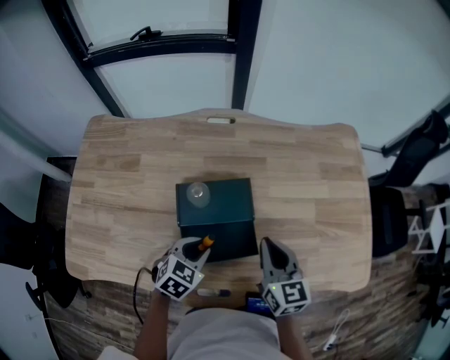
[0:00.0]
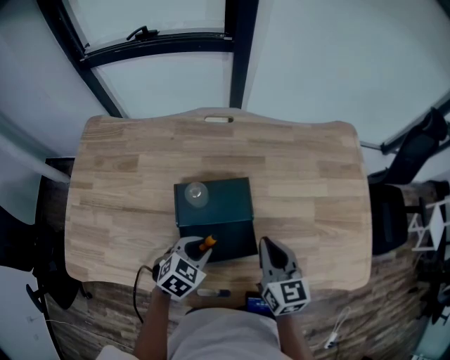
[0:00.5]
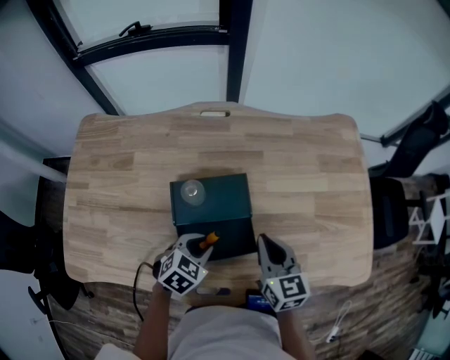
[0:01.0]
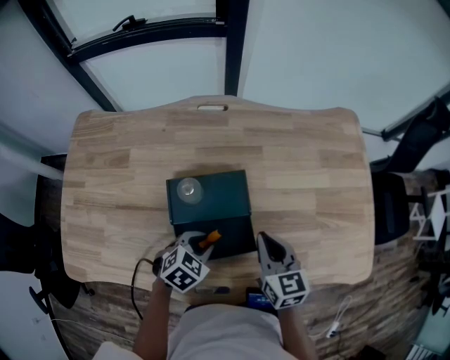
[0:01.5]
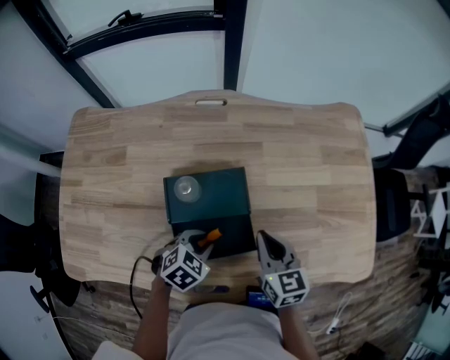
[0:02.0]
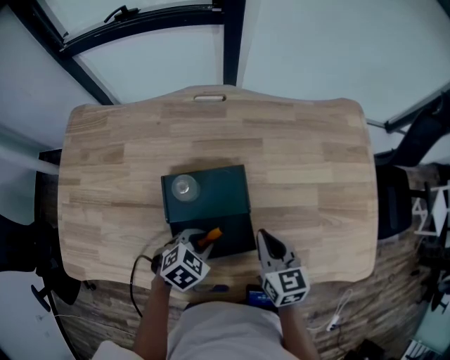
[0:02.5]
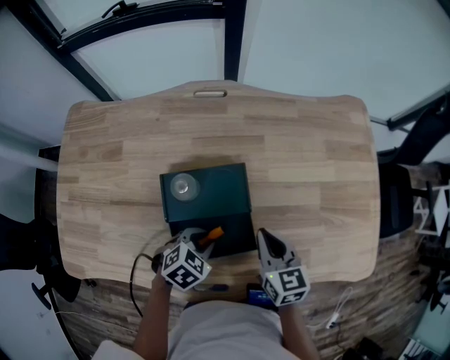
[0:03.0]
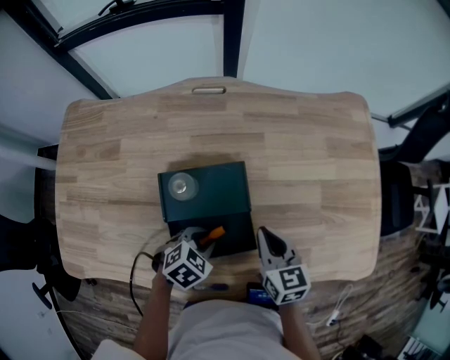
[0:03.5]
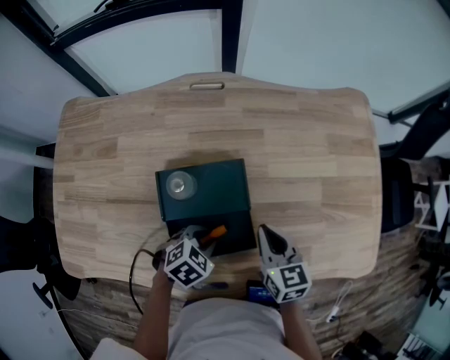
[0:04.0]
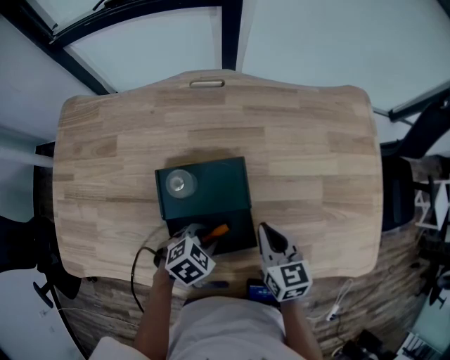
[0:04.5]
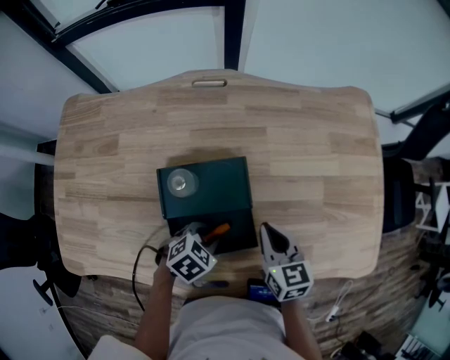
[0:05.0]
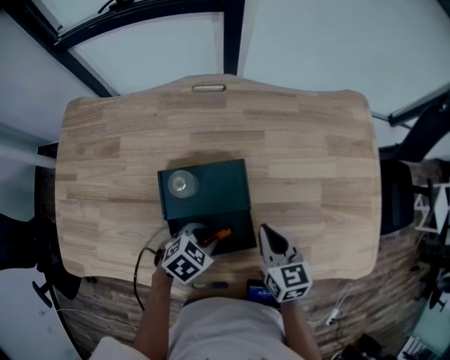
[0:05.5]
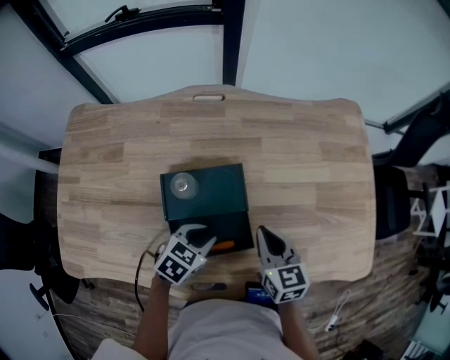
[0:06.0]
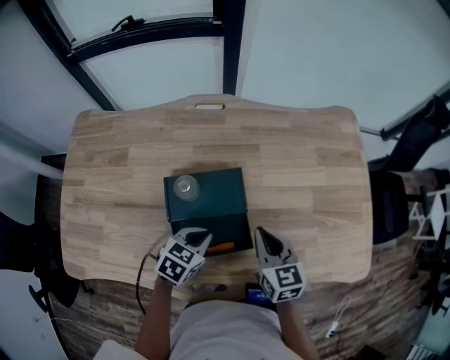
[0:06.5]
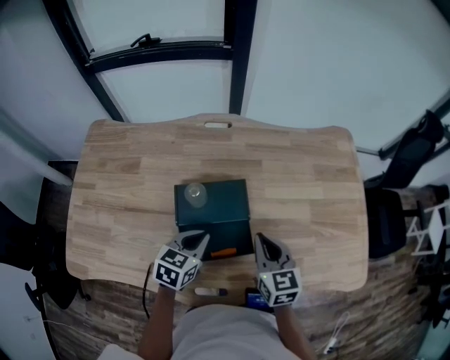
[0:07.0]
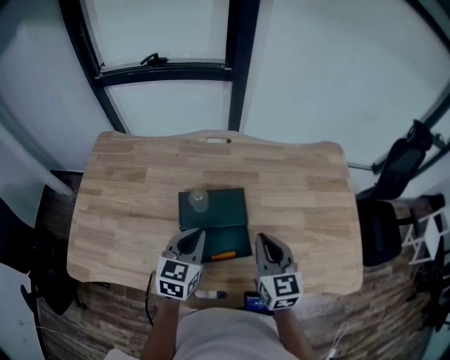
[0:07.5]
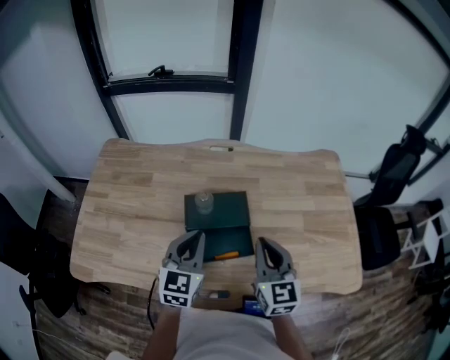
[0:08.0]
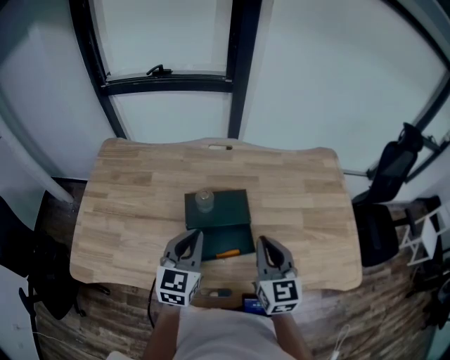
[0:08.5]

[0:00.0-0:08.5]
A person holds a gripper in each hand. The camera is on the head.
0:00.0 to 0:02.0: The right gripper travels downward by roughly 5 cm.
0:02.0 to 0:04.0: There are only small adjustments of the grippers.
0:04.0 to 0:06.5: The left gripper ends up approximately 5 cm from where it was, rotates some 20 degrees, and closes up.
0:06.5 to 0:08.5: Both grippers travel together upward, about 15 cm. The left gripper tips its fingers upward by approximately 30 degrees. Meanwhile the right gripper swivels some 20 degrees.

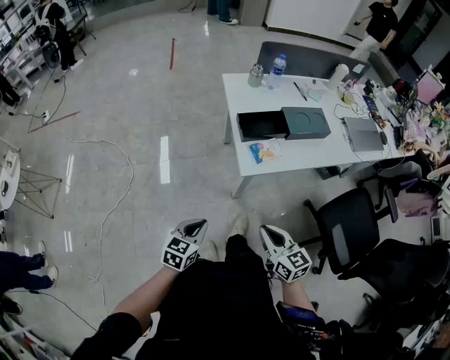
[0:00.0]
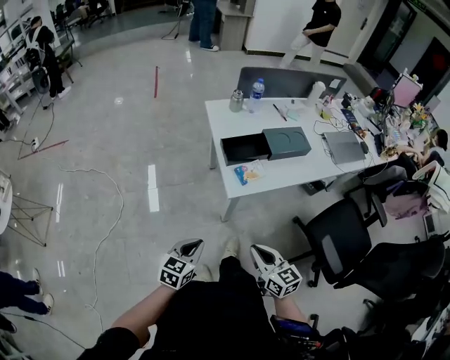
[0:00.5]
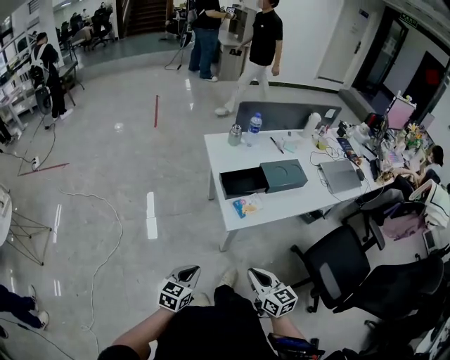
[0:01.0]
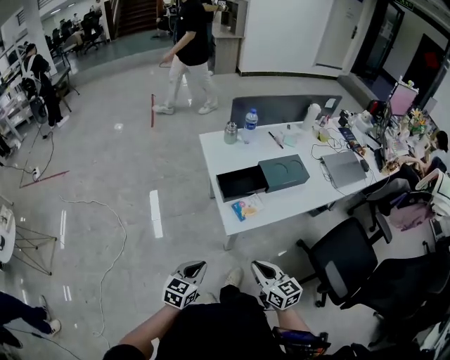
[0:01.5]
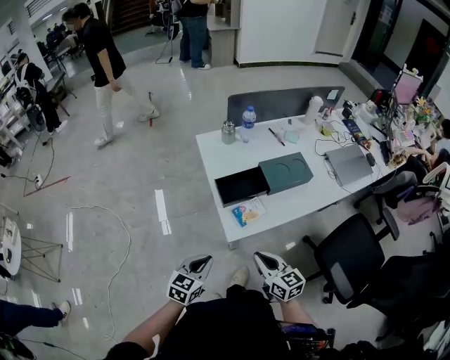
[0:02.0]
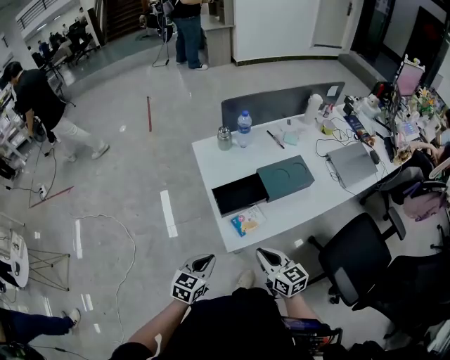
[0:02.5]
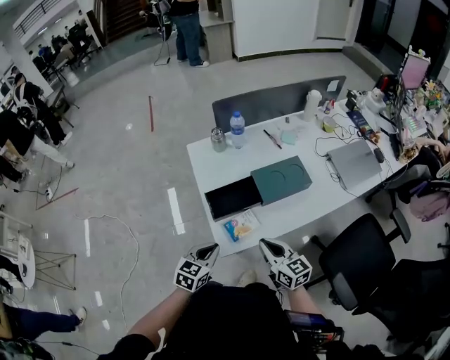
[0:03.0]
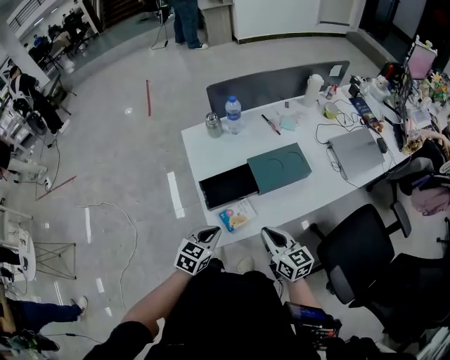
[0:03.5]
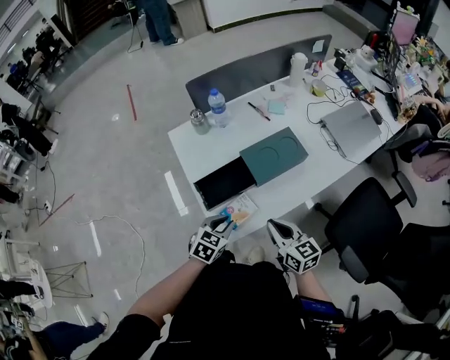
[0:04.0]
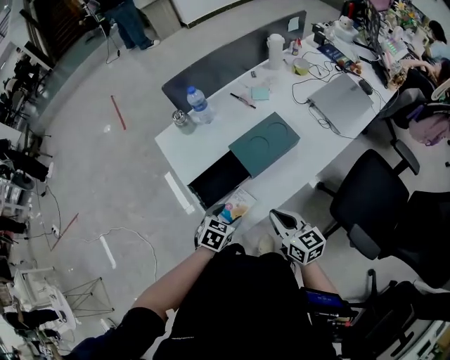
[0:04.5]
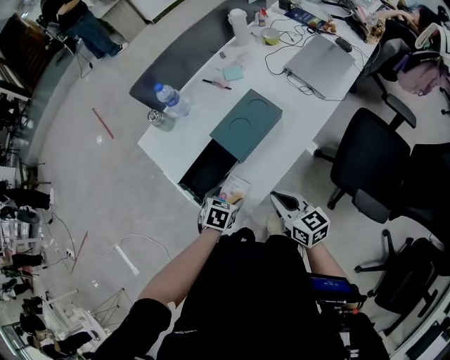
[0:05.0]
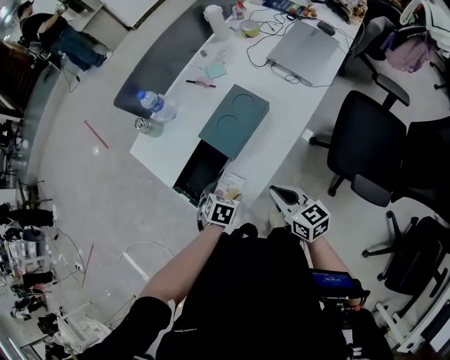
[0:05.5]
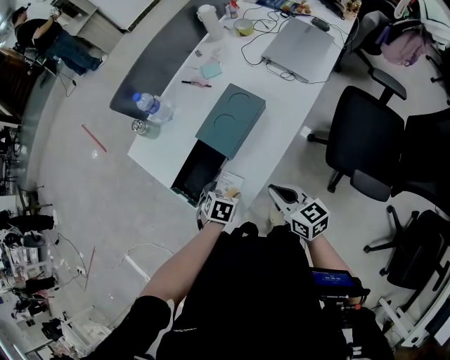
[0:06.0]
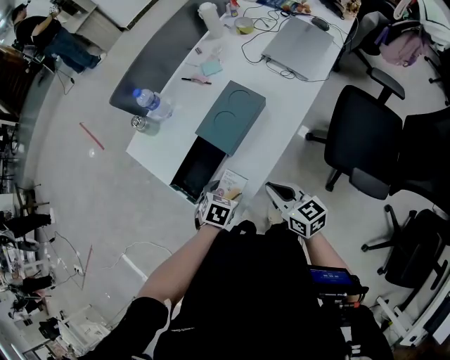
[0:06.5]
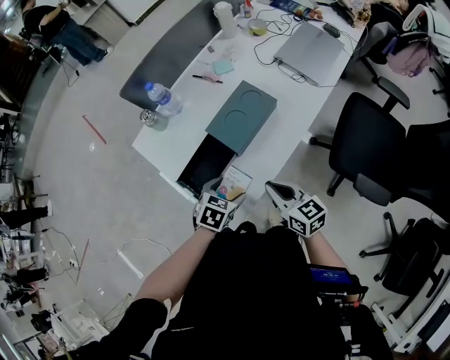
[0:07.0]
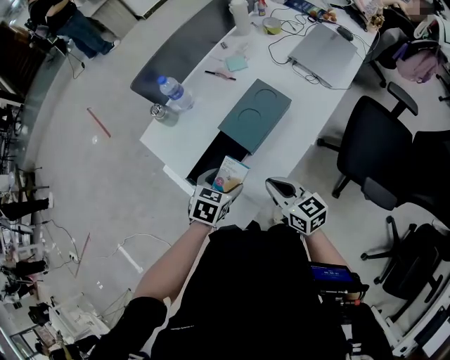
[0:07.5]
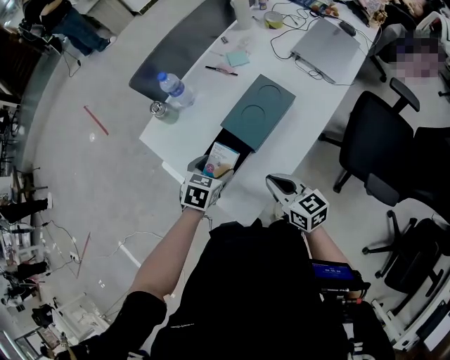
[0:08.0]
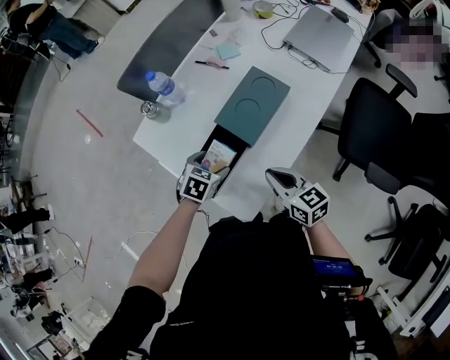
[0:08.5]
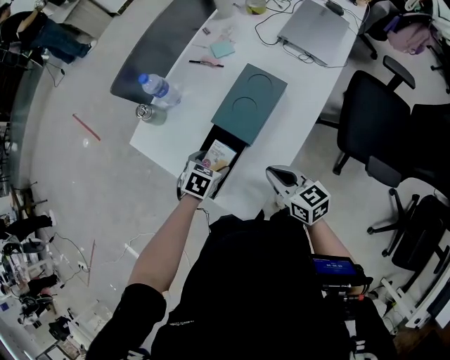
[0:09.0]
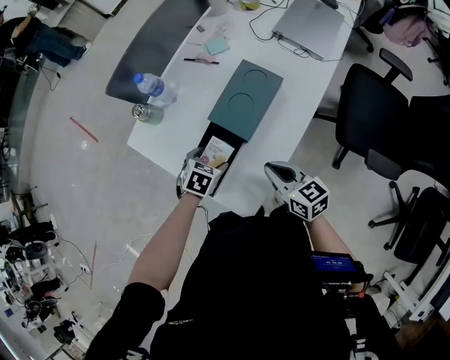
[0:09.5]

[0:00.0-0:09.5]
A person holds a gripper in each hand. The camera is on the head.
0:00.0 to 0:02.0: The two grippers go about 10 cm forward.
0:02.0 to 0:04.0: The grippers both shift forward and to the right by some 20 cm. The left gripper rotates about 20 degrees.
0:04.0 to 0:05.5: The left gripper heads downward, covering about 5 cm, turns by roughly 30 degrees, and opens its fingers.
0:05.5 to 0:07.5: The left gripper travels upward by roughly 10 cm; the right gripper goes roughly 5 cm to the left.
0:07.5 to 0:09.5: The left gripper travels downward and forward by roughly 10 cm.

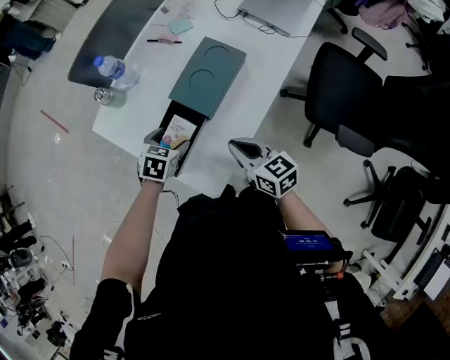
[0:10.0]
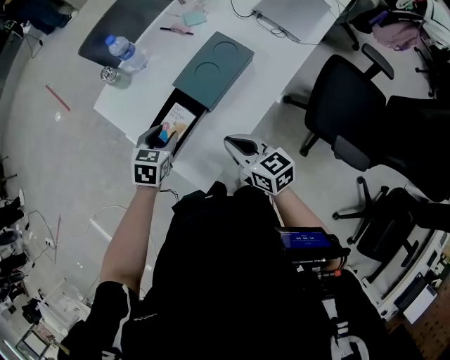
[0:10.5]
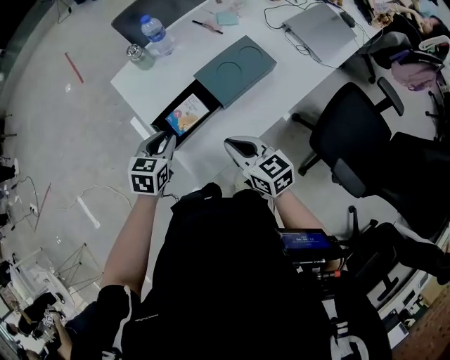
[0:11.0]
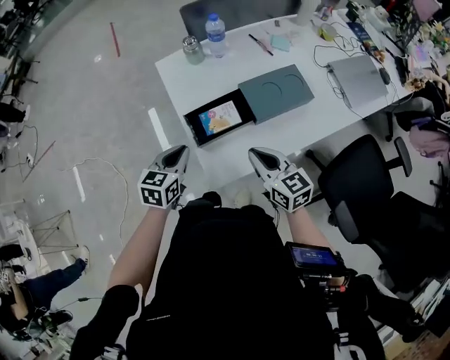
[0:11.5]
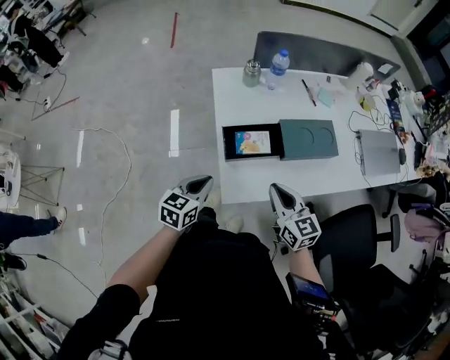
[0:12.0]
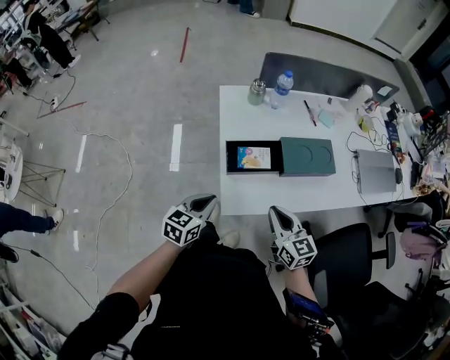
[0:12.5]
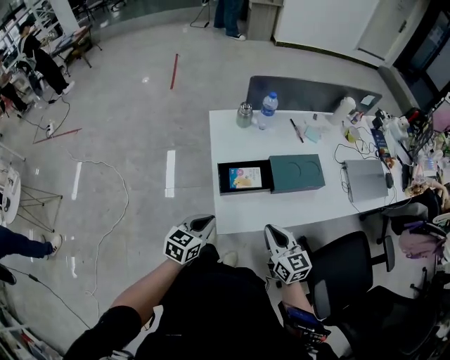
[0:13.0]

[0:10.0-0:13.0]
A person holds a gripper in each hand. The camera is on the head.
0:10.0 to 0:11.5: The left gripper changes place by roughly 15 cm, turns by some 50 degrees, and closes; the right gripper rotates about 30 degrees.
0:11.5 to 0:13.0: The left gripper travels backward by roughly 10 cm. Meanwhile the right gripper moves backward, some 5 cm.

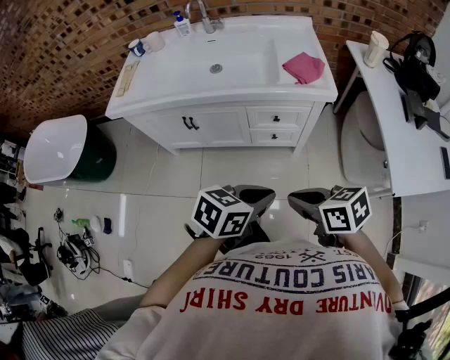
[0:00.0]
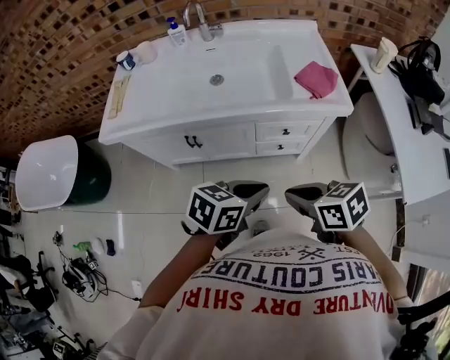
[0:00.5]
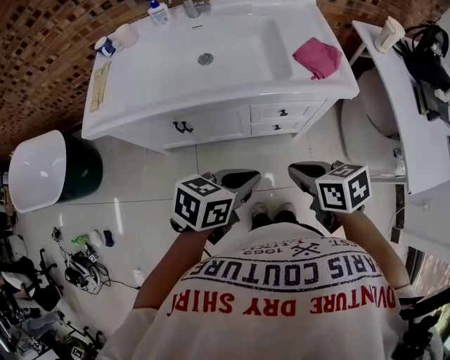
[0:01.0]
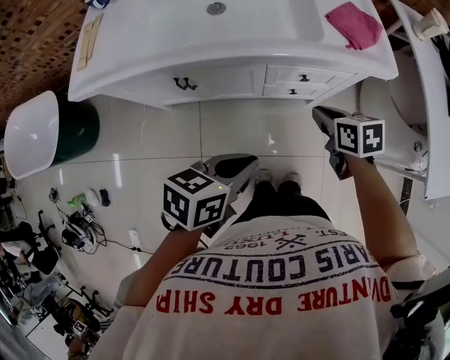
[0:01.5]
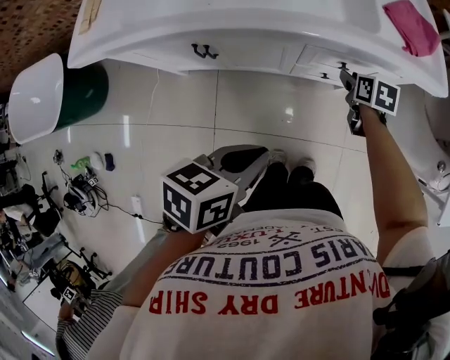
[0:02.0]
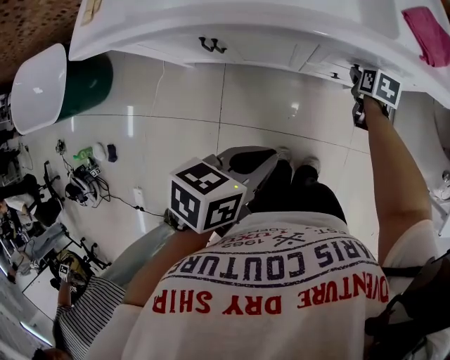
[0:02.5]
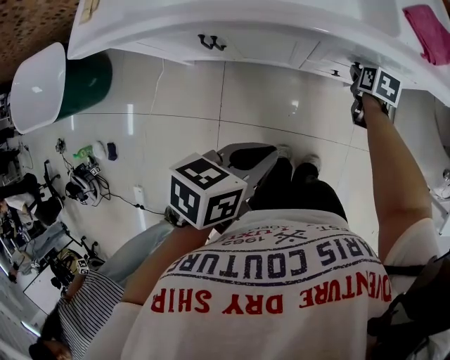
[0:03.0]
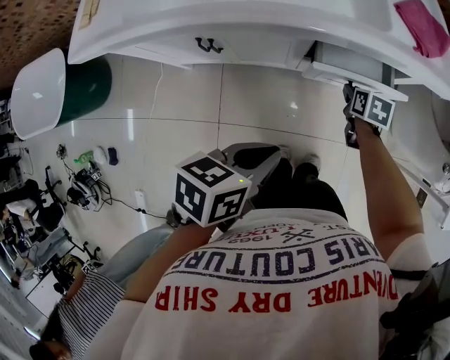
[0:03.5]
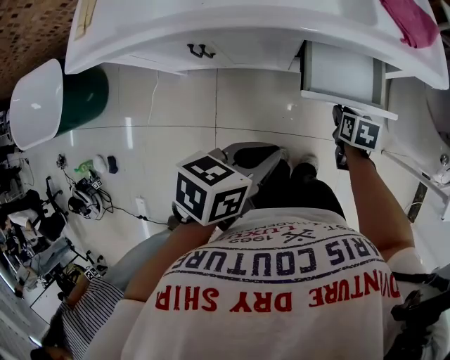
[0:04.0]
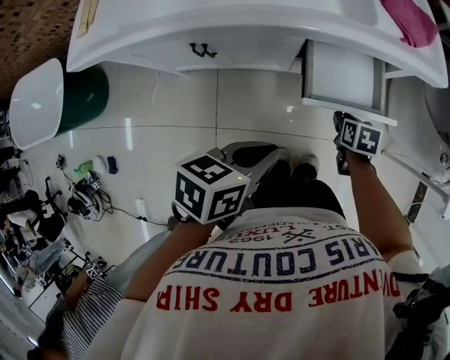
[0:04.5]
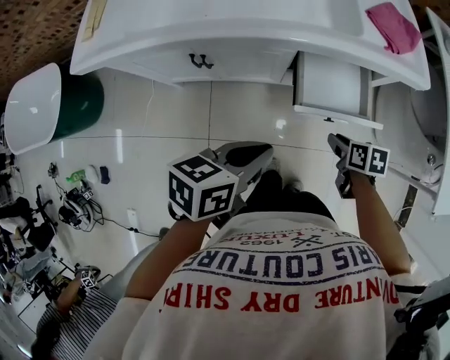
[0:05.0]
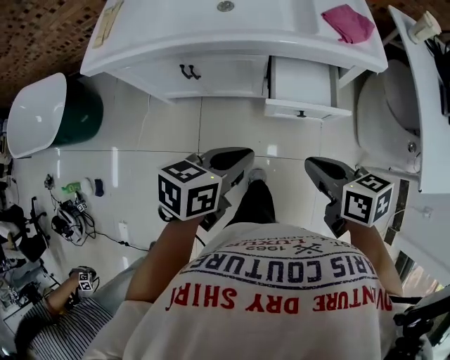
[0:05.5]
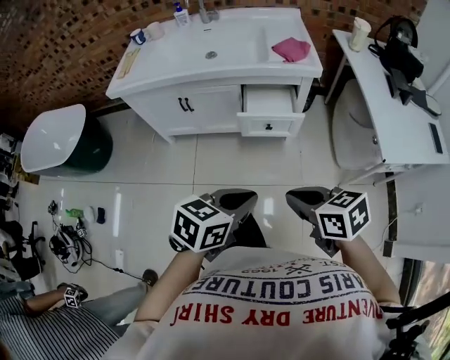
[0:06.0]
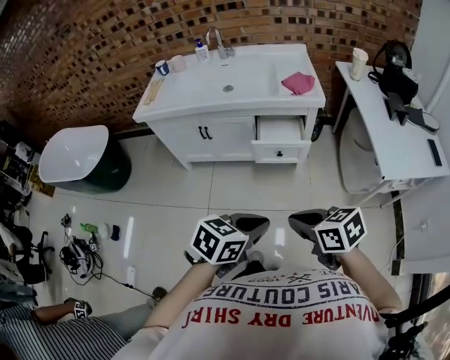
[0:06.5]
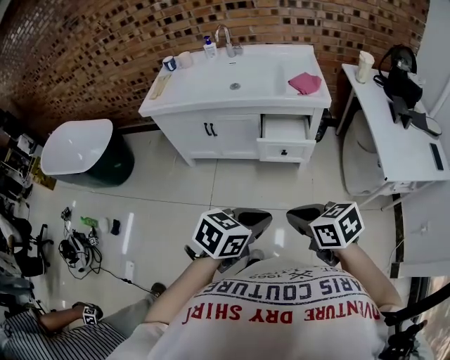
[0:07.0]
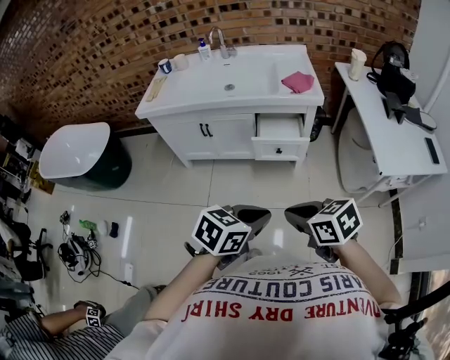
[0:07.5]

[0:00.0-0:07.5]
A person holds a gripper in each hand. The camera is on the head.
0:00.0 to 0:02.0: The left gripper shifts by approximately 25 cm, and changes its angle by about 20 degrees; the right gripper ends up about 50 cm from where it was, rotates roughly 40 degrees, and opens up.
0:02.0 to 0:04.0: The right gripper is displaced backward and downward by about 15 cm.
0:04.0 to 0:05.5: The left gripper is displaced upward and backward by about 10 cm. Meanwhile the right gripper shifts some 30 cm upward and backward, tilts its fingers approximately 30 degrees upward, and closes.
0:05.5 to 0:07.5: The left gripper heads backward, covering approximately 30 cm, and rotates roughly 20 degrees. Meanwhile the right gripper moves backward and upward, roughly 30 cm, and rotates roughly 20 degrees.
